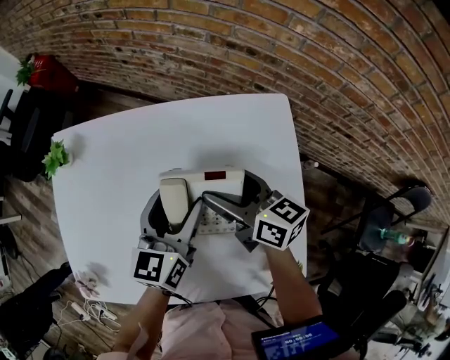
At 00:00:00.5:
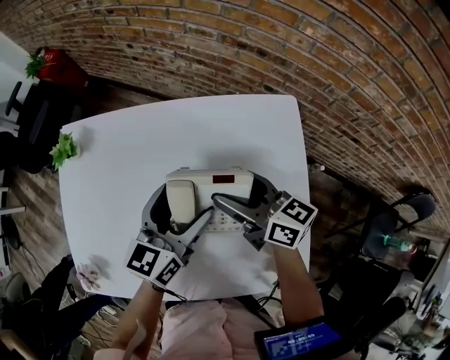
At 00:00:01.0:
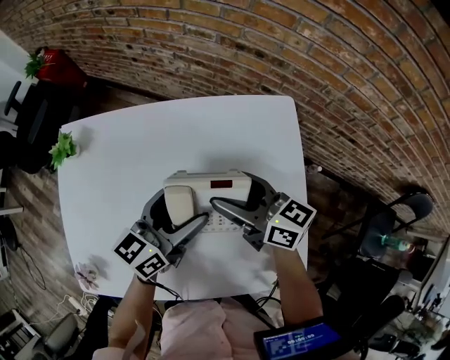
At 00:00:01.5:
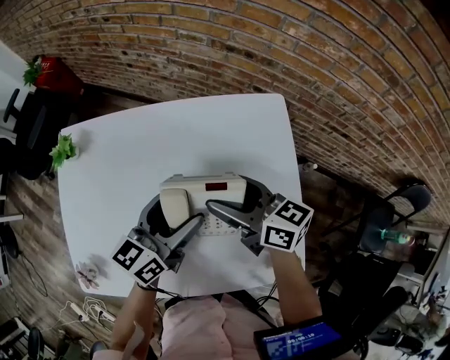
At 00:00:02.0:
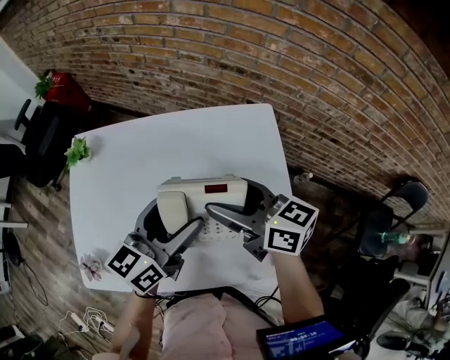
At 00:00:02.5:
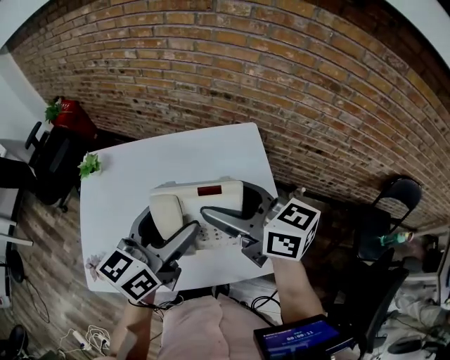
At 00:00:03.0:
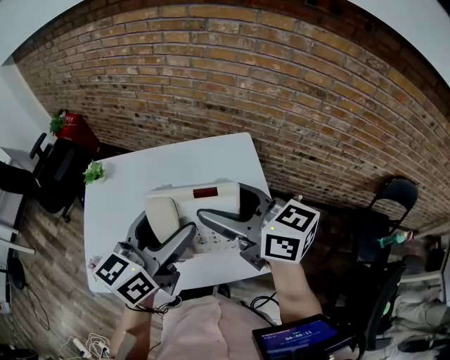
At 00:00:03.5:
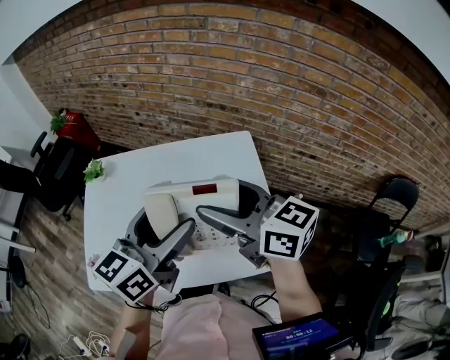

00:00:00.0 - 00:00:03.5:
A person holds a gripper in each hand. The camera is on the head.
00:00:00.0 - 00:00:02.0: The grippers both shift upward and backward by about 15 cm.
00:00:02.0 - 00:00:03.5: Both grippers move upward and backward, some 15 cm.

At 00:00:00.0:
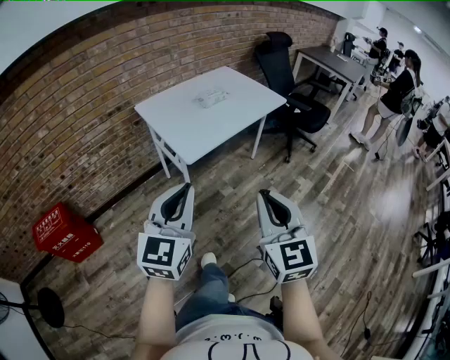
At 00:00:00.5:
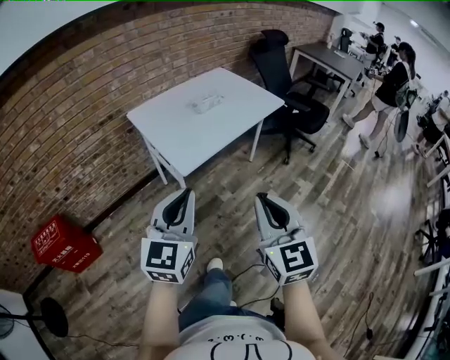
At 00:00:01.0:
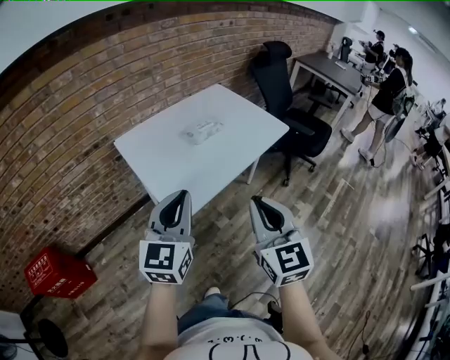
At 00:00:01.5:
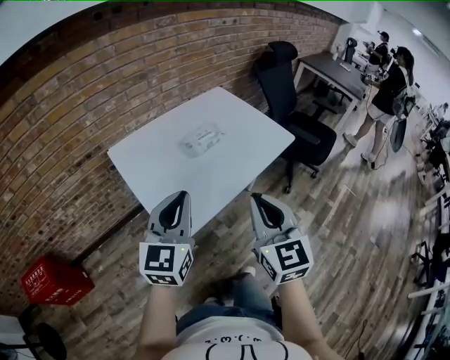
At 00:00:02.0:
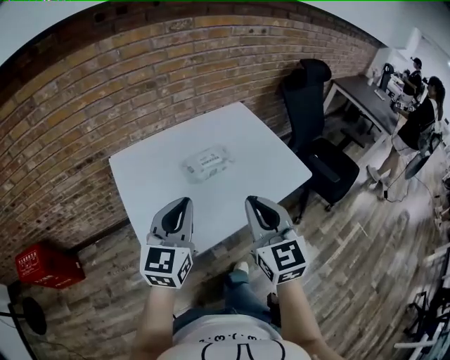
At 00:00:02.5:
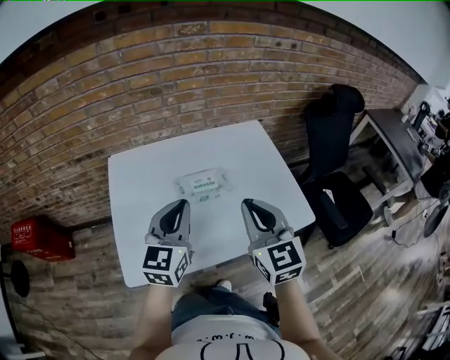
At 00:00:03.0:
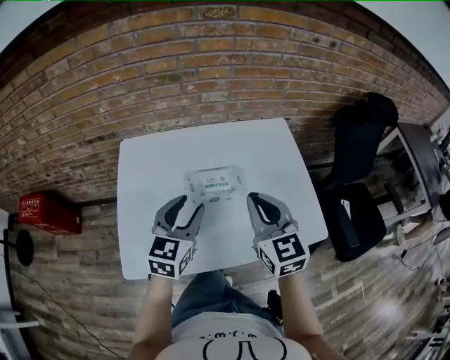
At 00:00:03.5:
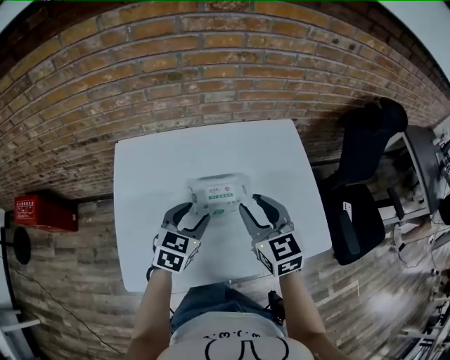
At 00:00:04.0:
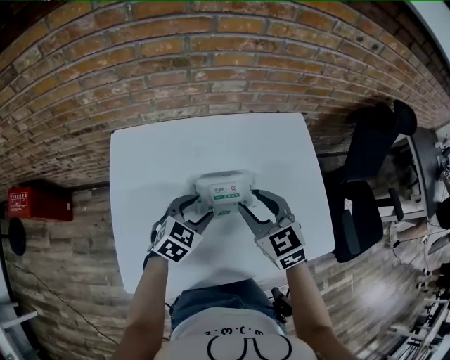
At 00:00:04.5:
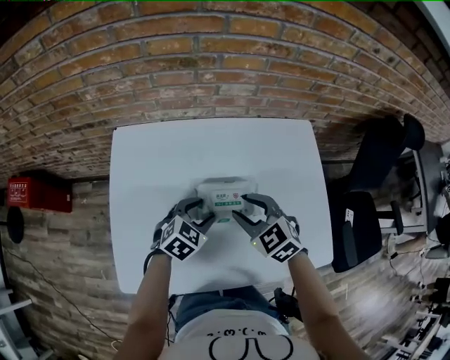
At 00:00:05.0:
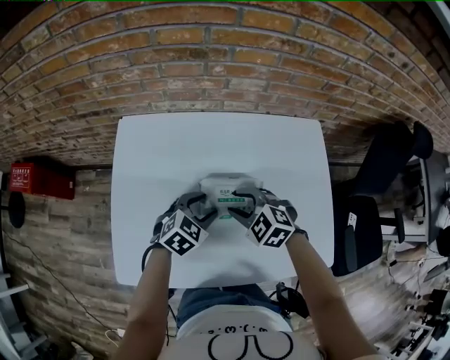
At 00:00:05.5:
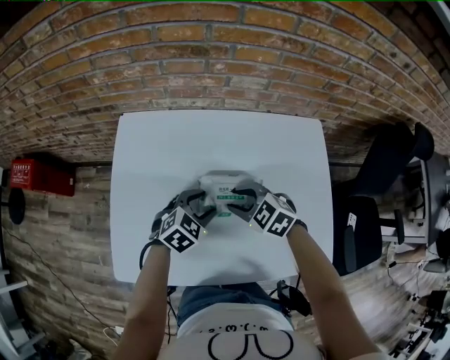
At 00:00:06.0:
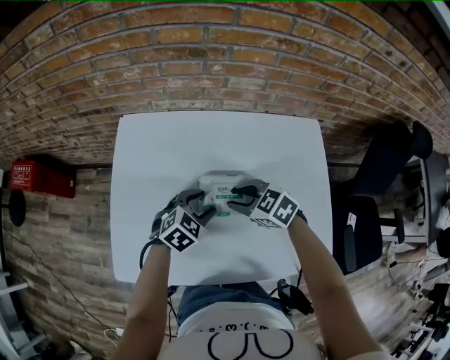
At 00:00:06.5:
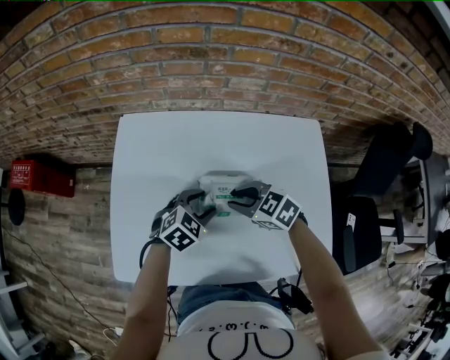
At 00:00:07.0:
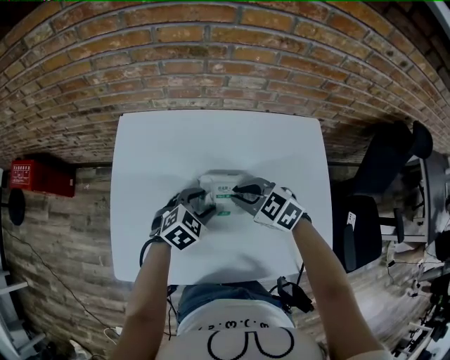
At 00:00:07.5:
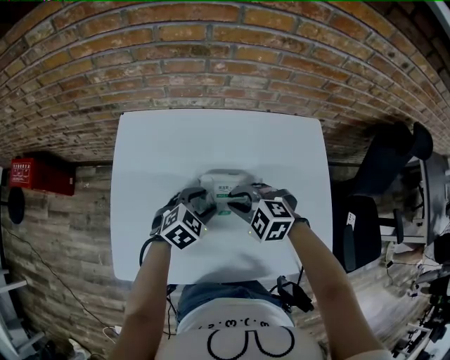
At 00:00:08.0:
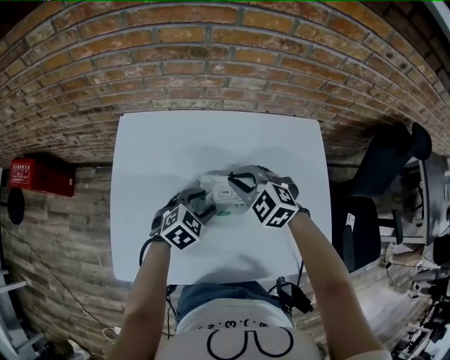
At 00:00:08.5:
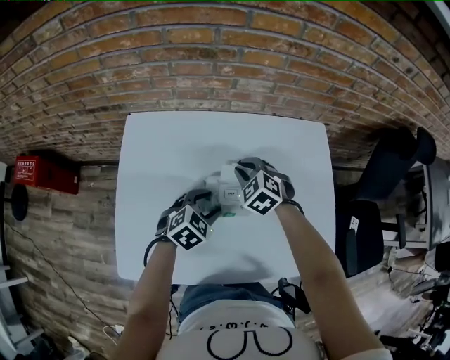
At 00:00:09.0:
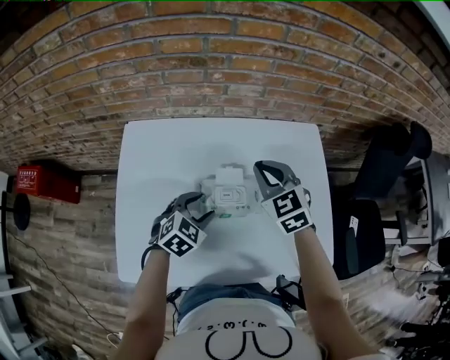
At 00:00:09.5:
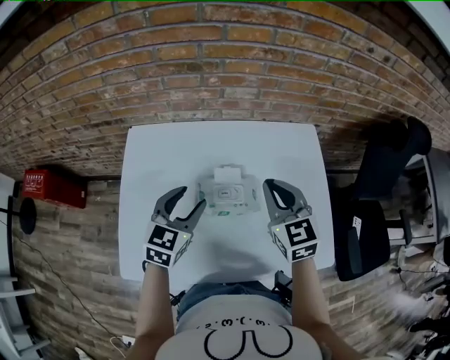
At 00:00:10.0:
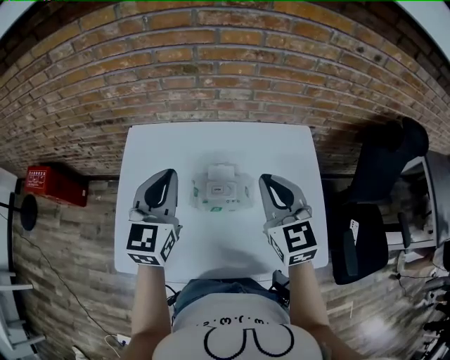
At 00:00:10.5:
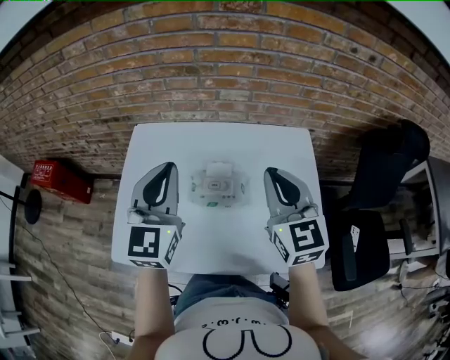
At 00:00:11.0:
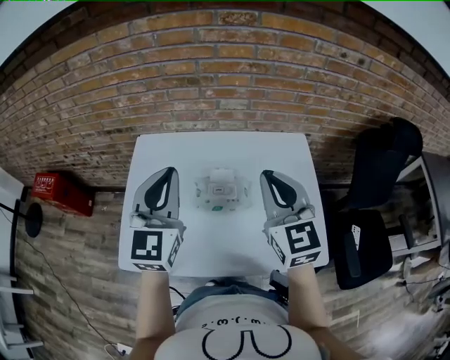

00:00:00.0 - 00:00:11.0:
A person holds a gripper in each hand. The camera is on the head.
00:00:00.0 - 00:00:02.0: The pair of grippers is taken forward, approximately 50 cm.
00:00:02.0 - 00:00:03.5: The left gripper heads forward and downward, covering some 25 cm, angles its fingers downward, by roughly 30 degrees, and opens up; the right gripper shifts about 25 cm forward, swivels about 30 degrees, and opens its fingers.
00:00:03.5 - 00:00:05.5: The left gripper goes approximately 10 cm downward, and turns by about 20 degrees, while the right gripper is displaced downward and to the left by some 15 cm, and swivels some 50 degrees.
00:00:05.5 - 00:00:07.5: There are only small adjustments of the grippers.
00:00:07.5 - 00:00:09.0: The right gripper moves up and down over approximately 10 cm, changing direction 2 times, and rotates roughly 50 degrees.
00:00:09.0 - 00:00:11.0: The left gripper shifts approximately 30 cm upward, tips its fingers upward by some 50 degrees, and closes its fingers, while the right gripper goes roughly 20 cm upward and backward, and changes its angle by about 30 degrees.

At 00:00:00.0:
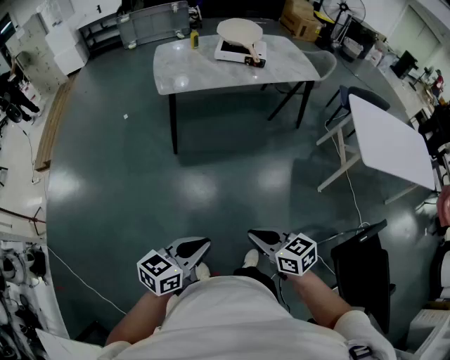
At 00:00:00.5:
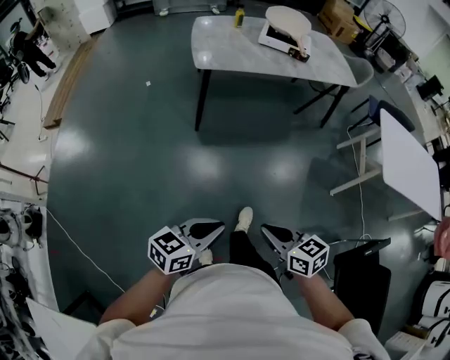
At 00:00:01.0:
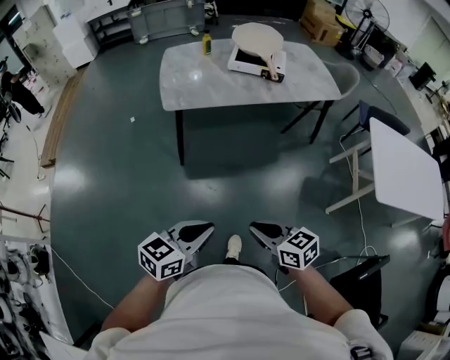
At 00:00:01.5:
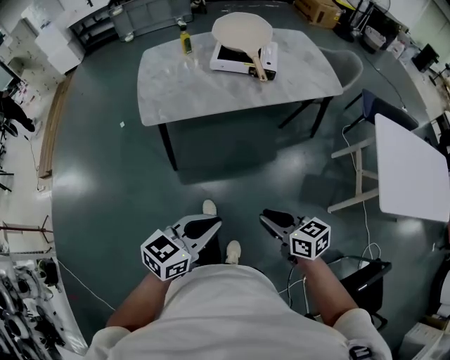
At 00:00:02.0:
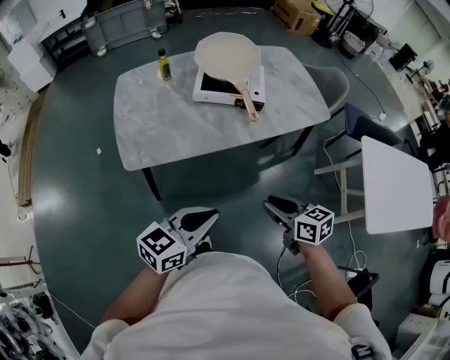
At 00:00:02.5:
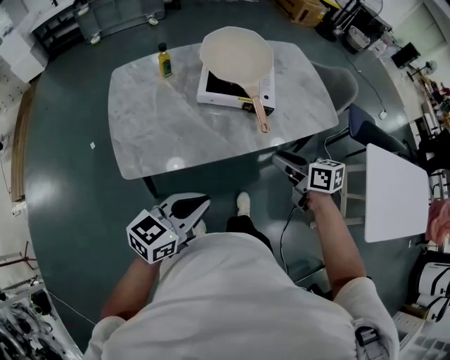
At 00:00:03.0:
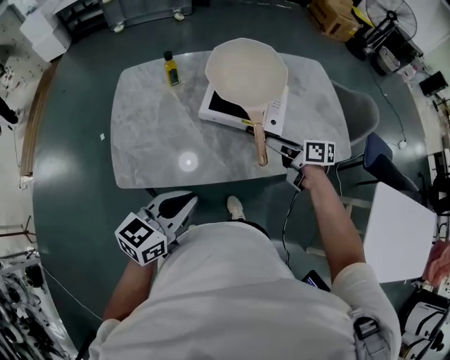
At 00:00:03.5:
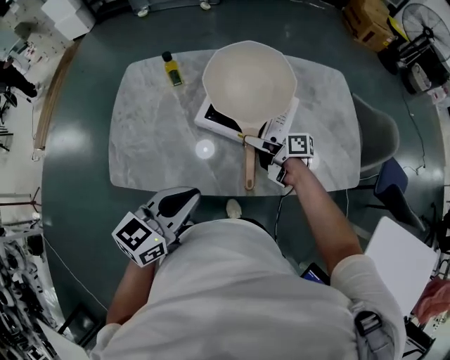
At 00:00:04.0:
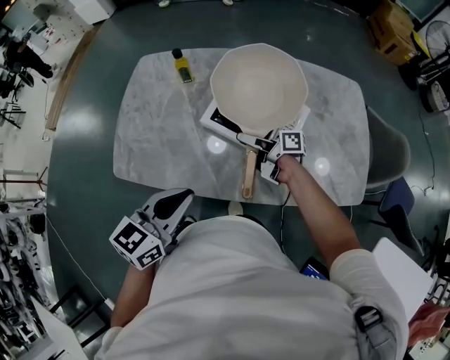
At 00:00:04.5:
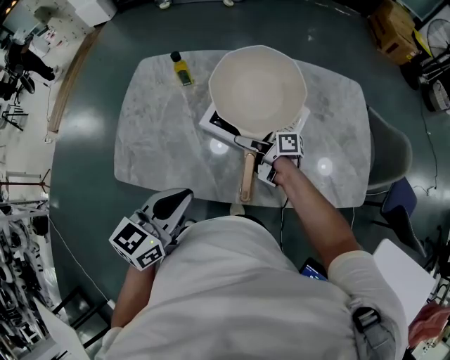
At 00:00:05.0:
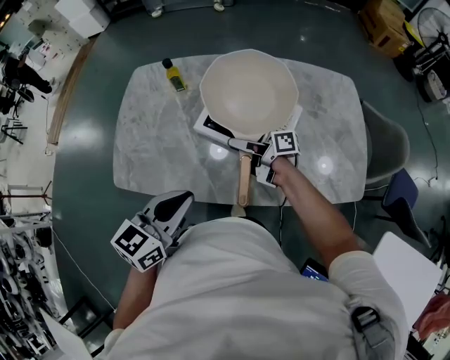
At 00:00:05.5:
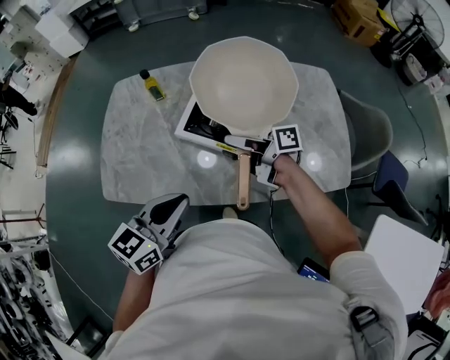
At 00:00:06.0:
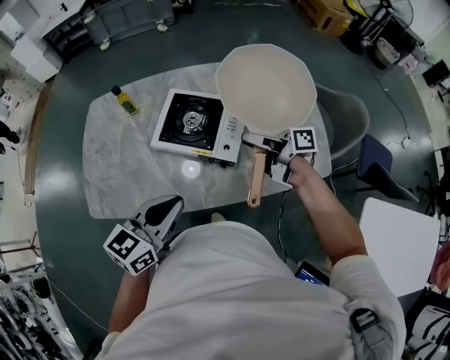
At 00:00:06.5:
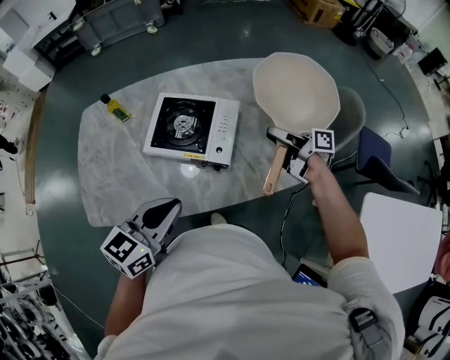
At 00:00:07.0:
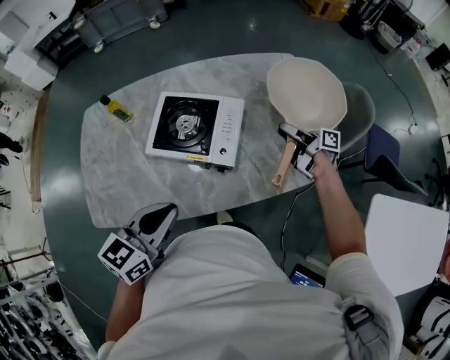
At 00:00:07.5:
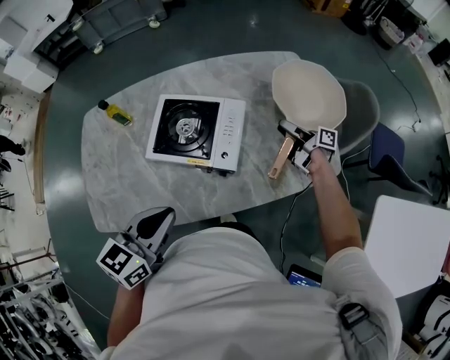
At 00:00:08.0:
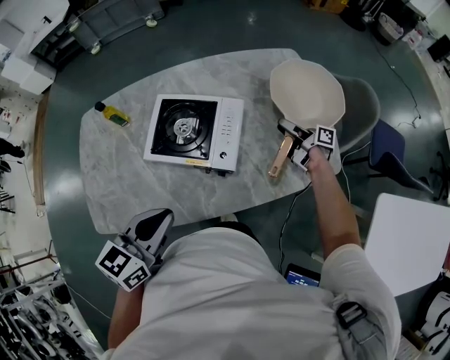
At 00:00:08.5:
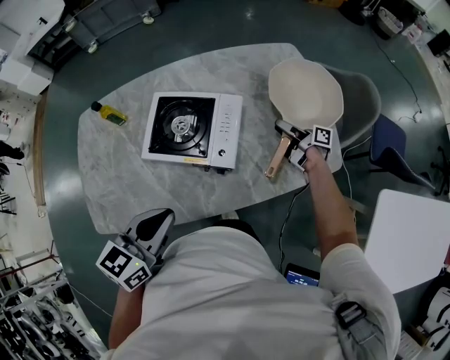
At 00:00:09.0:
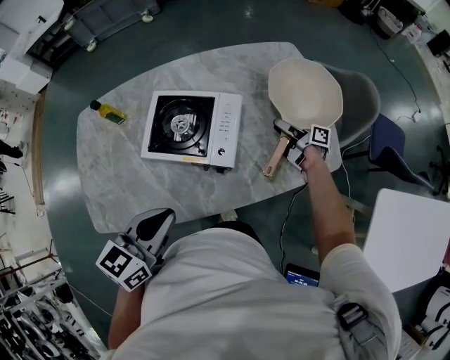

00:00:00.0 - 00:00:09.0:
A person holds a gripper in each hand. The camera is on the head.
00:00:00.0 - 00:00:02.0: The pair of grippers is taken forward, approximately 60 cm.
00:00:02.0 - 00:00:04.5: The left gripper moves approximately 30 cm, and swivels roughly 40 degrees. Meanwhile the right gripper moves some 50 cm, turns by roughly 60 degrees, and opens, then closes once more.
00:00:04.5 - 00:00:07.0: The right gripper moves to the right, about 35 cm, and swivels about 30 degrees, while the left gripper goes some 10 cm to the right.
00:00:07.0 - 00:00:09.0: The right gripper travels downward by roughly 10 cm.

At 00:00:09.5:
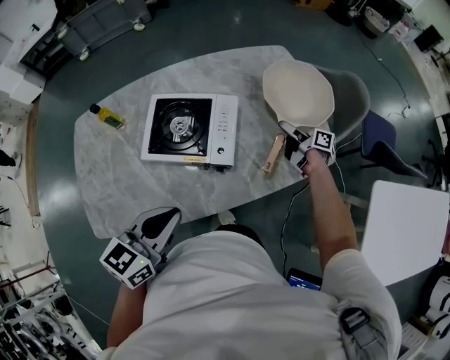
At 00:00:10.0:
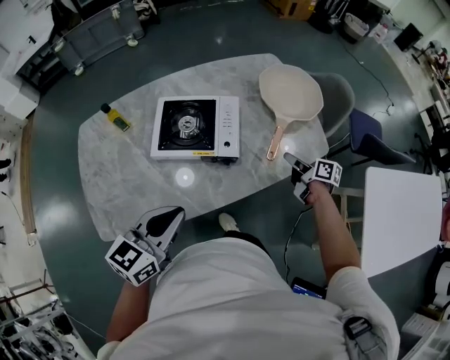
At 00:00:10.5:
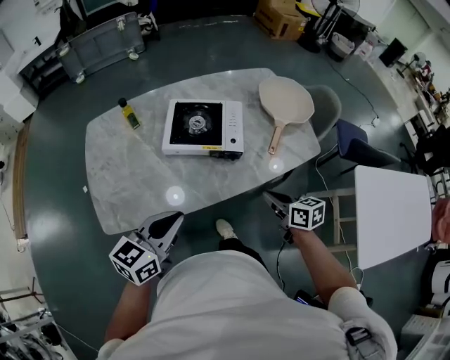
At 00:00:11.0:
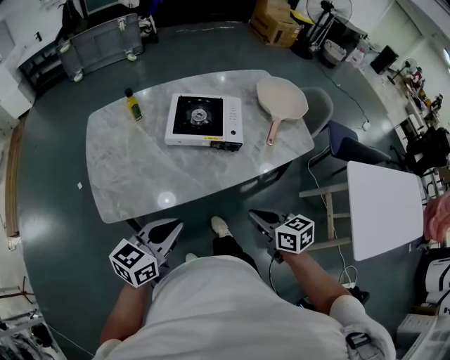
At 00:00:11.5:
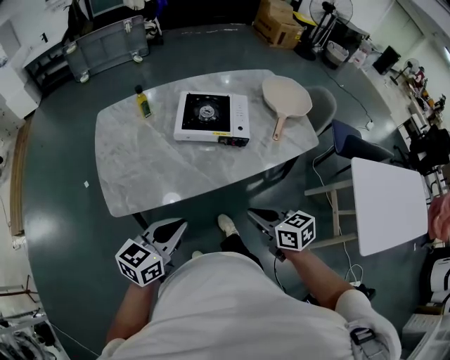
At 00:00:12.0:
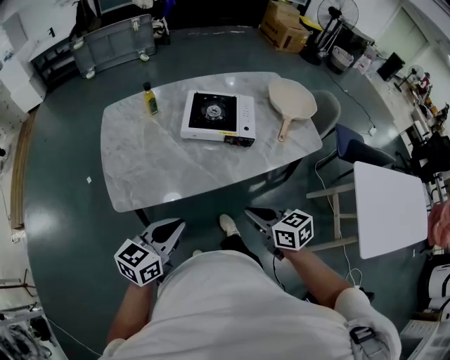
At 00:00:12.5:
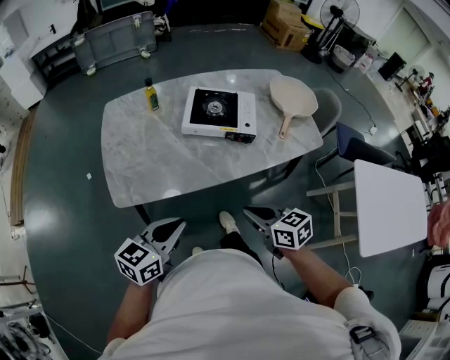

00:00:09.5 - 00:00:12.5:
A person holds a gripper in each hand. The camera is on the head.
00:00:09.5 - 00:00:11.0: The right gripper travels backward and to the left by some 50 cm, rolls counterclockwise, seen from behind, by some 50 degrees, and closes, while the left gripper heads backward and to the left, covering about 25 cm.
00:00:11.0 - 00:00:12.5: The right gripper goes approximately 5 cm to the left. Meanwhile the left gripper shifts about 5 cm backward.
